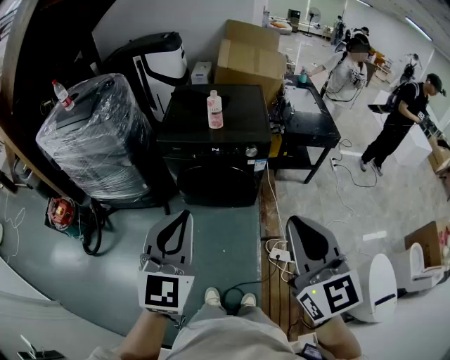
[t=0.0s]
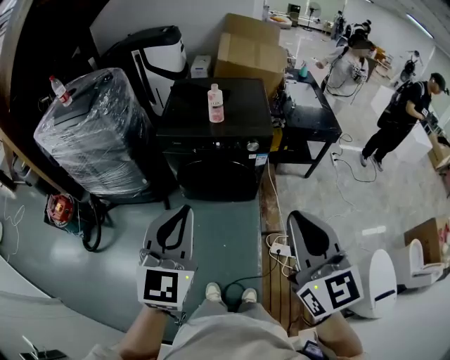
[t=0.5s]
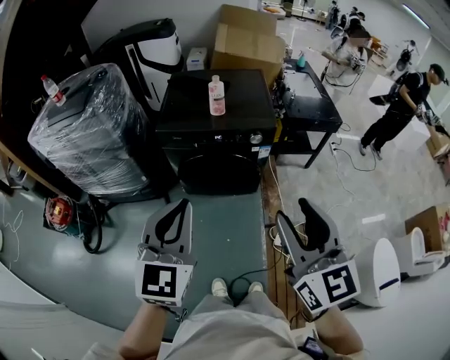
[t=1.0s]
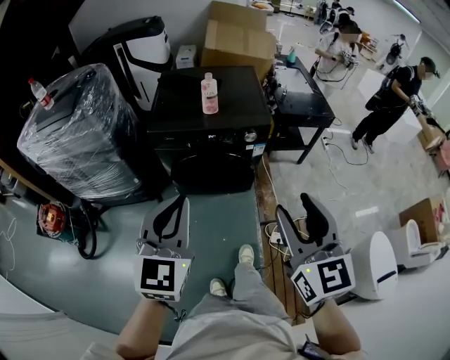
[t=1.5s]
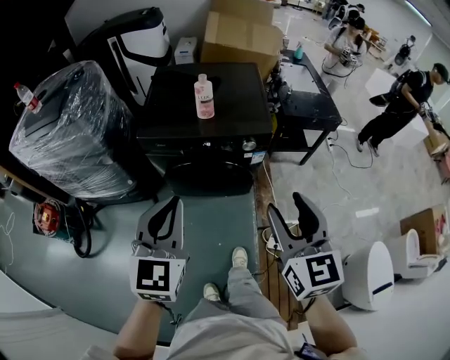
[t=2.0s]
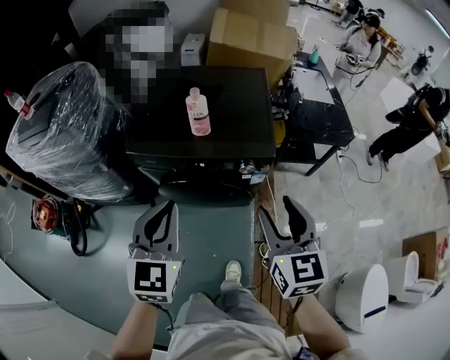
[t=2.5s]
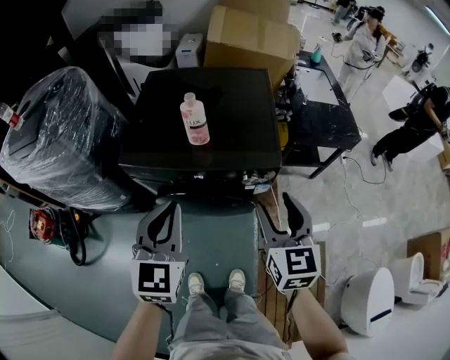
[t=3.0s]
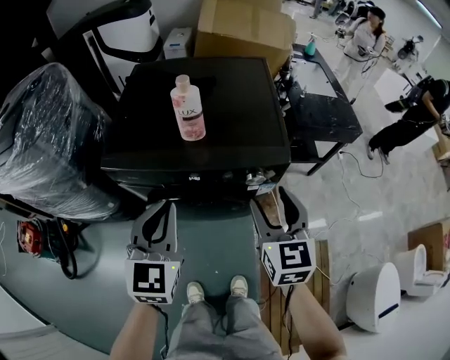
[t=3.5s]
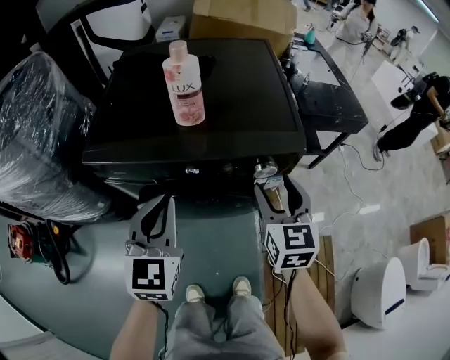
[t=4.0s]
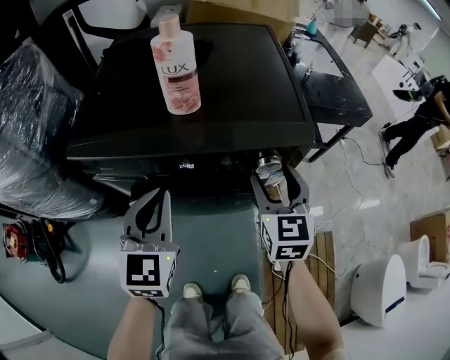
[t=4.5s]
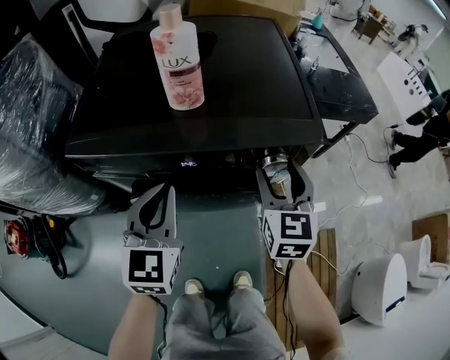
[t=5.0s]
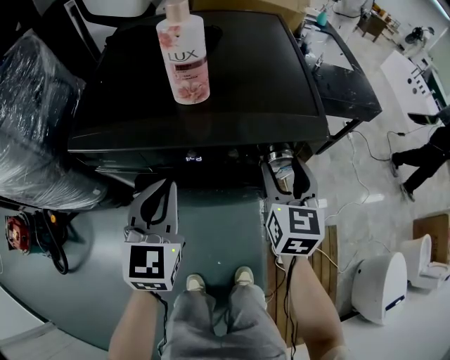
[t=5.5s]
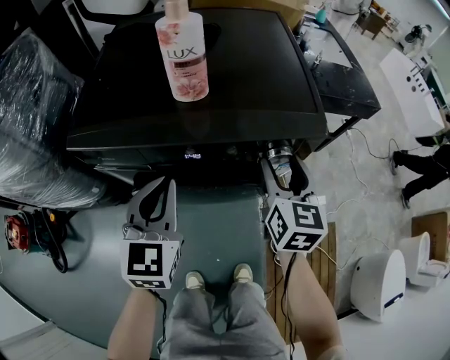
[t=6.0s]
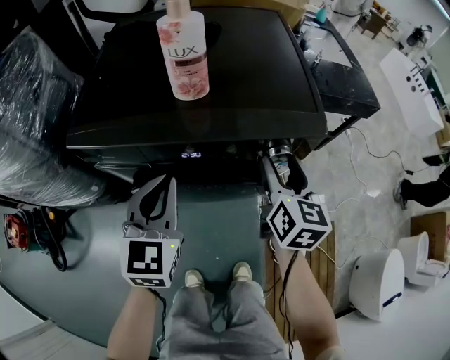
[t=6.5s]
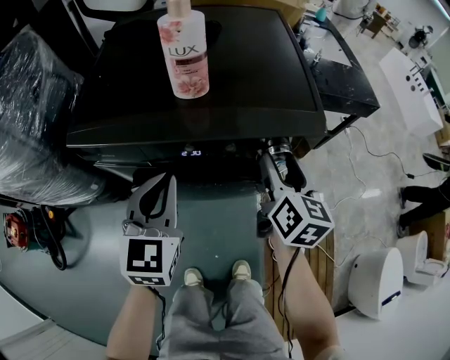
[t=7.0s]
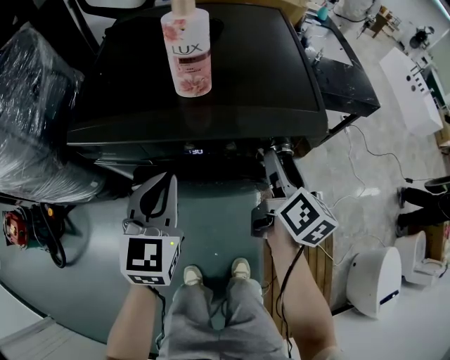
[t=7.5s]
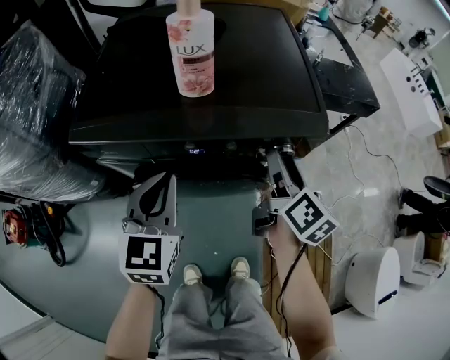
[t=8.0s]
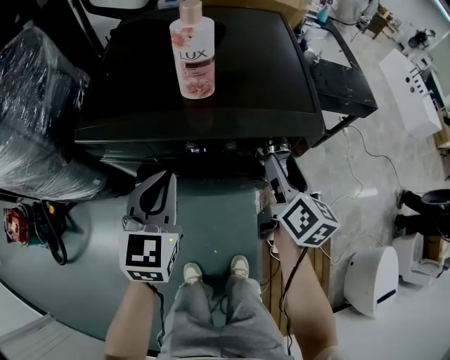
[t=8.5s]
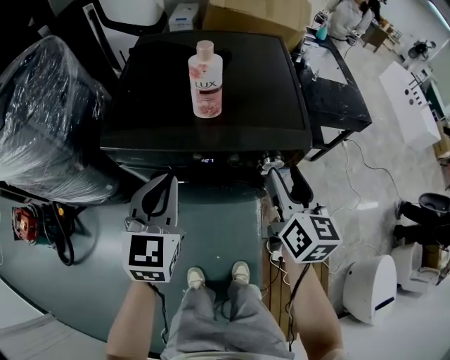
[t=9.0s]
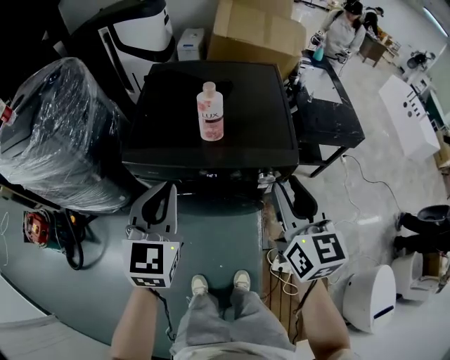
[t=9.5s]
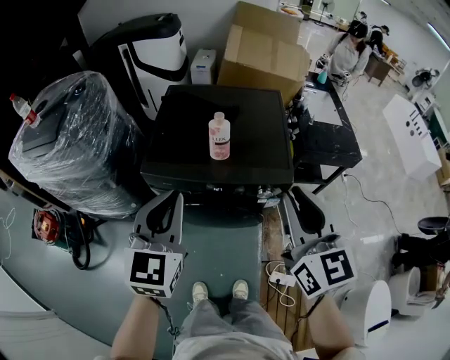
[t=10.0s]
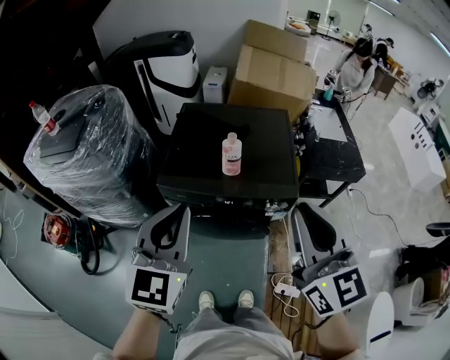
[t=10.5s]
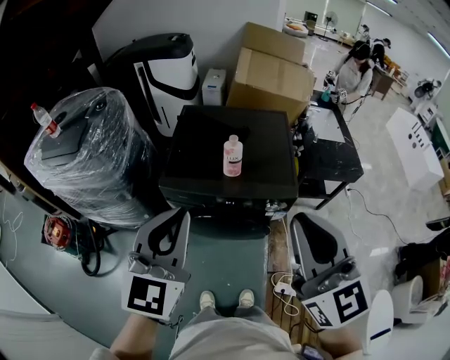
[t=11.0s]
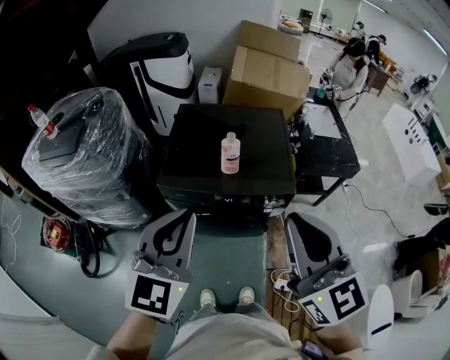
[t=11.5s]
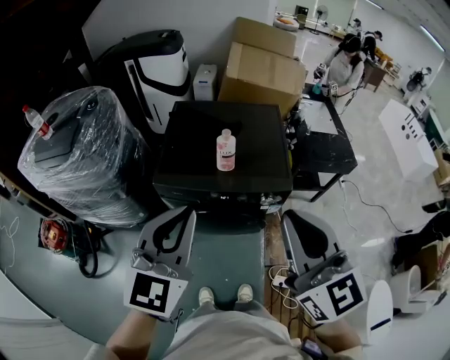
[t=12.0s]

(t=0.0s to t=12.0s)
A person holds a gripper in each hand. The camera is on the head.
t=0.0s - t=2.0s: Both grippers move forward and downward, some 20 cm. The right gripper opens.
t=2.0s - t=4.0s: Both grippers move forward and downward, approximately 40 cm.
t=4.0s - t=6.0s: The left gripper heads downward, covering roughly 5 cm. Meanwhile the right gripper moves roughly 5 cm.
t=6.0s - t=8.0s: The right gripper turns by about 40 degrees.
t=8.0s - t=10.0s: The grippers both shift upward by roughly 35 cm. The right gripper twists some 40 degrees counterclockwise, seen from behind, and closes.
t=10.0s - t=12.0s: The right gripper heads upward, backward and to the left, covering approximately 15 cm. Meanwhile the left gripper heads upward and backward, covering some 10 cm.

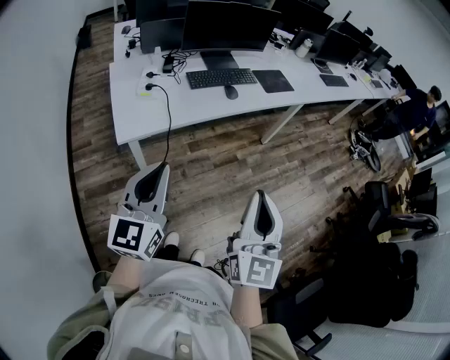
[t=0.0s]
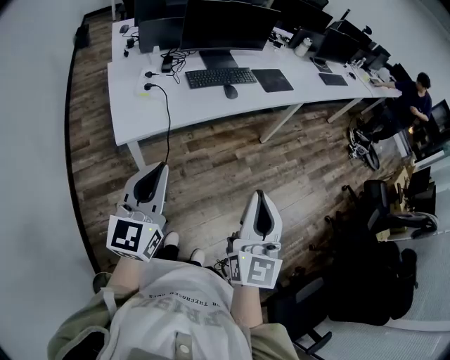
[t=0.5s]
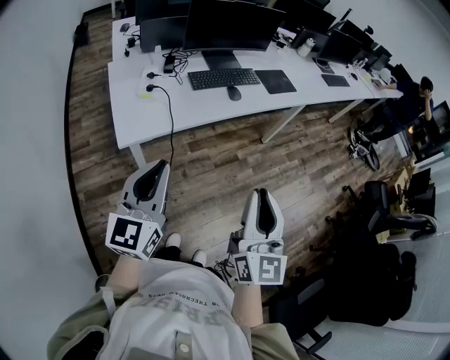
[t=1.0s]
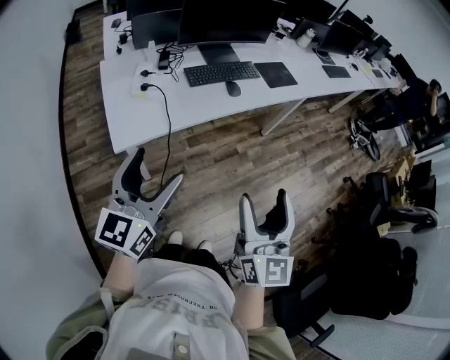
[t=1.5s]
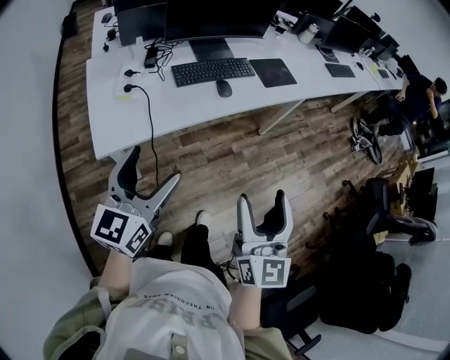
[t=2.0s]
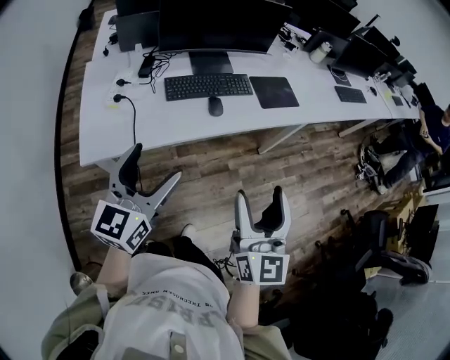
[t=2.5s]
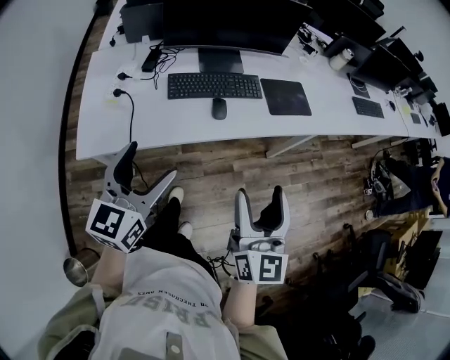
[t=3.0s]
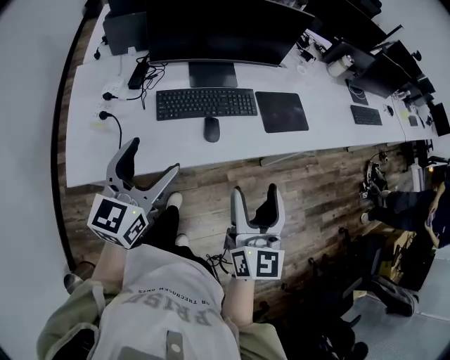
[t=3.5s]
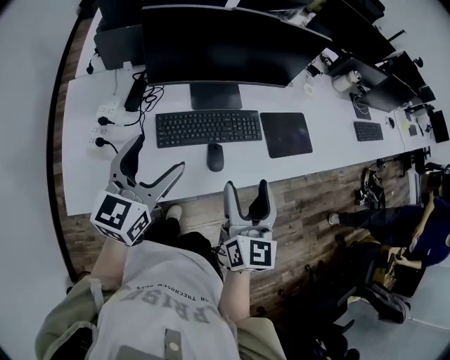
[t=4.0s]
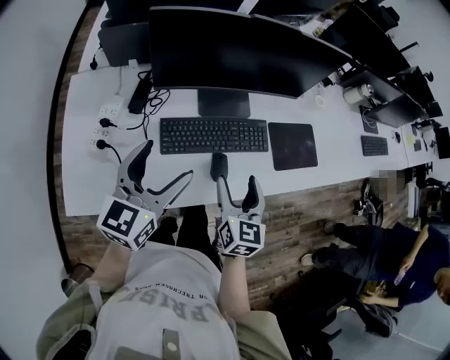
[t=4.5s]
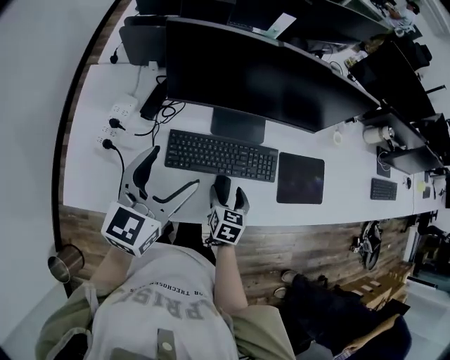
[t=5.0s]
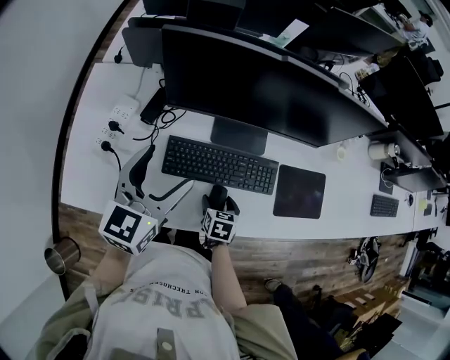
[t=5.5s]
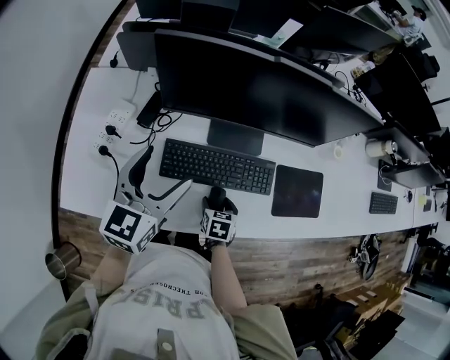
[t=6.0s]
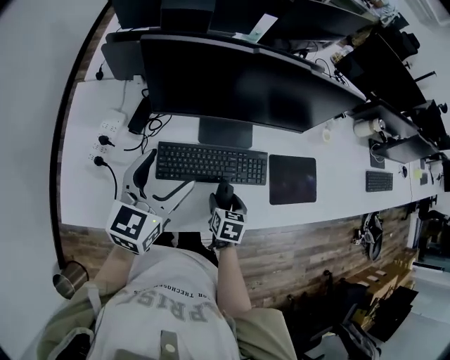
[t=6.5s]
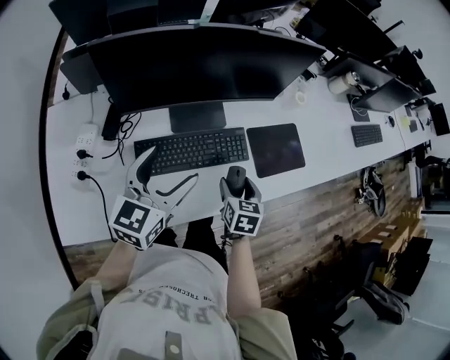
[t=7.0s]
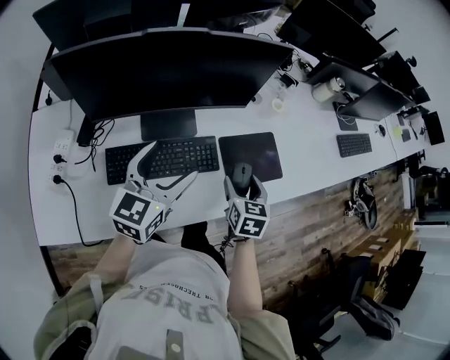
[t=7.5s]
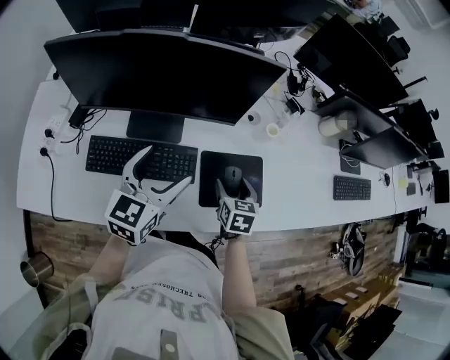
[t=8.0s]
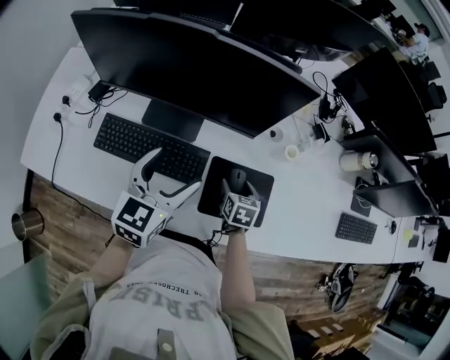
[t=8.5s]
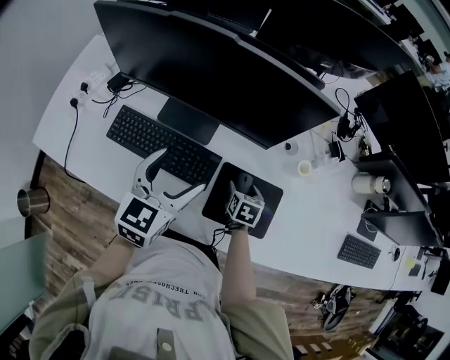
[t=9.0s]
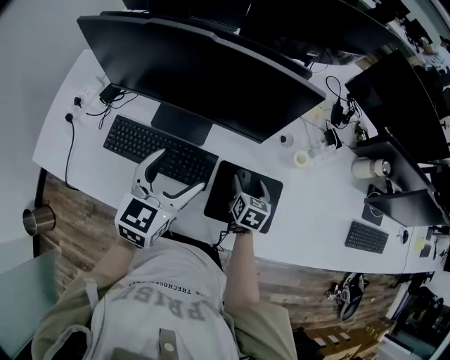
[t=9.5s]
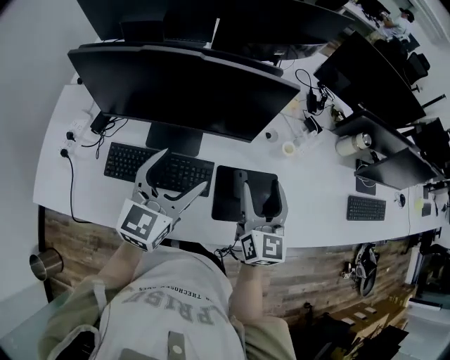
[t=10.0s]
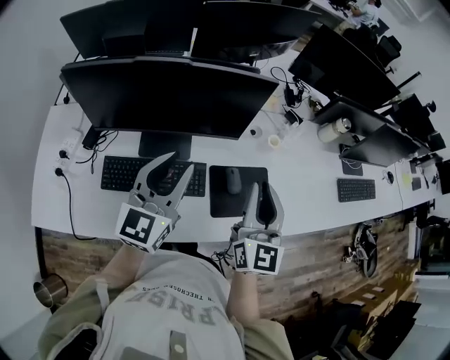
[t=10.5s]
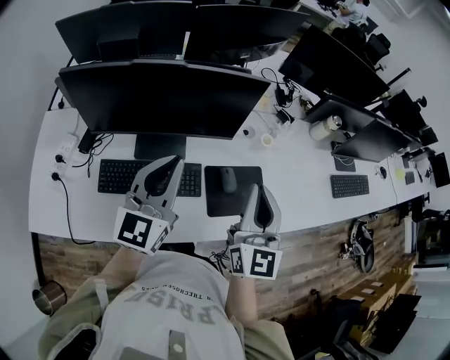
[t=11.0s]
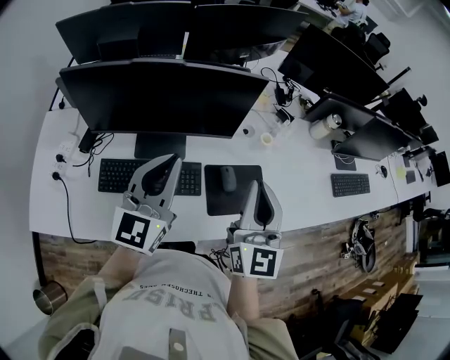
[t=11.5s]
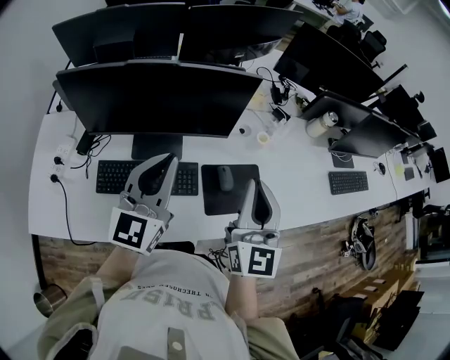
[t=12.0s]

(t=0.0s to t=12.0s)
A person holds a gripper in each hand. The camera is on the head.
t=0.0s - t=2.0s: The grippers both shift forward by approximately 15 cm. The right gripper opens. Meanwhile the left gripper opens its fingers.
t=2.0s - t=4.0s: Both grippers travel together forward, about 40 cm.
t=4.0s - t=6.0s: The left gripper travels forward by some 10 cm. Meanwhile the right gripper moves downward, roughly 30 cm, and tips its fingers downward by roughly 50 degrees.
t=6.0s - t=8.0s: The right gripper is displaced to the right and forward by roughly 30 cm. Meanwhile the left gripper heads to the right, covering some 25 cm.
t=8.0s - t=10.0s: The right gripper heads upward, covering roughly 15 cm, and tips its fingers upward by about 40 degrees.
t=10.0s - t=12.0s: The right gripper travels upward and backward by about 15 cm, and closes. The left gripper travels upward by about 10 cm, and closes.

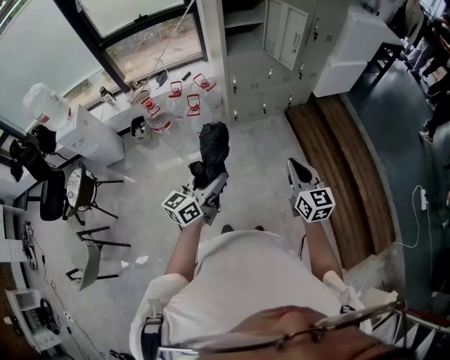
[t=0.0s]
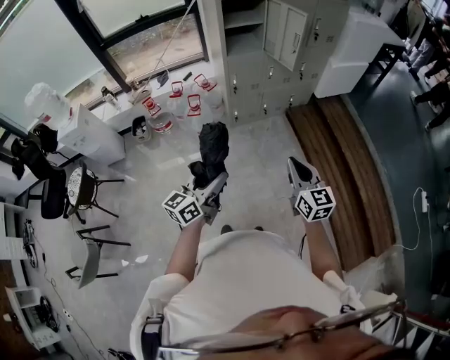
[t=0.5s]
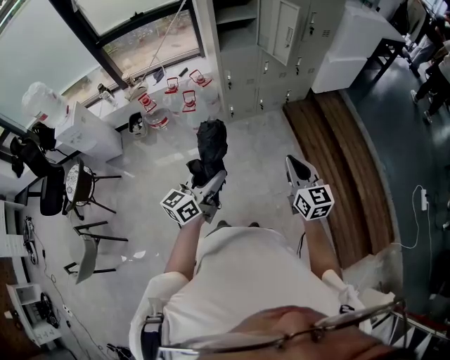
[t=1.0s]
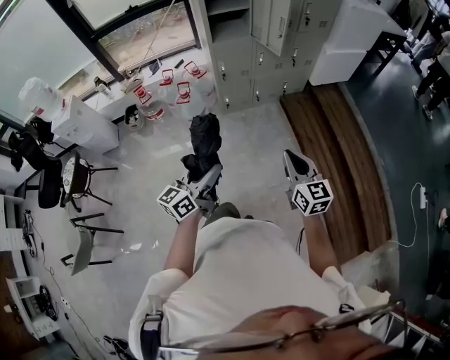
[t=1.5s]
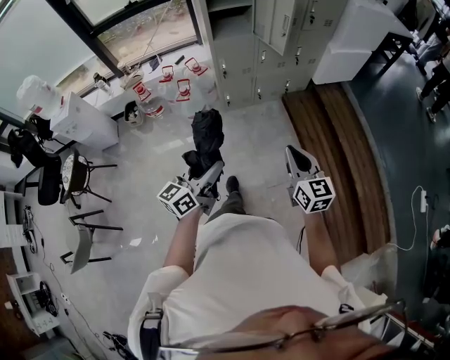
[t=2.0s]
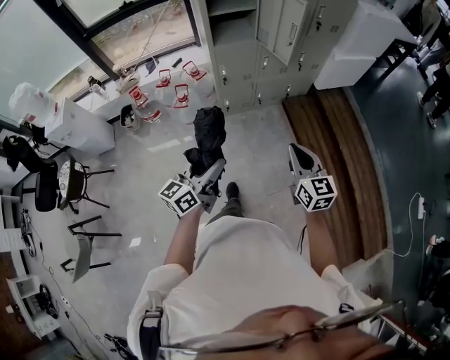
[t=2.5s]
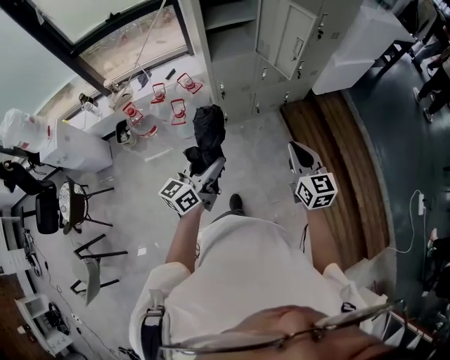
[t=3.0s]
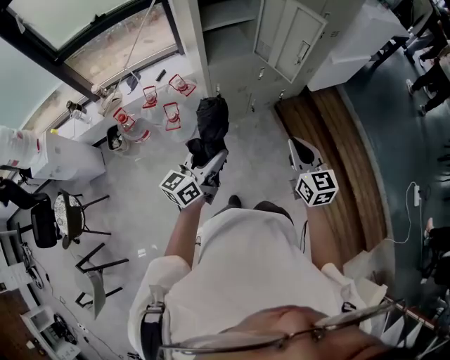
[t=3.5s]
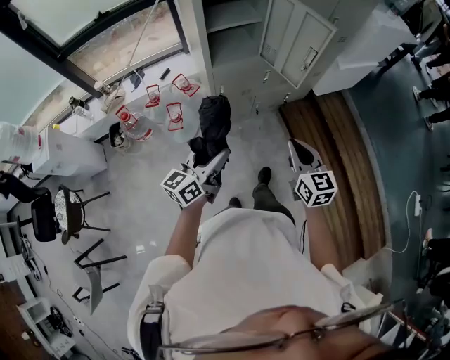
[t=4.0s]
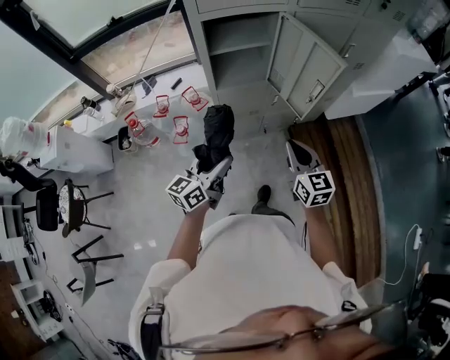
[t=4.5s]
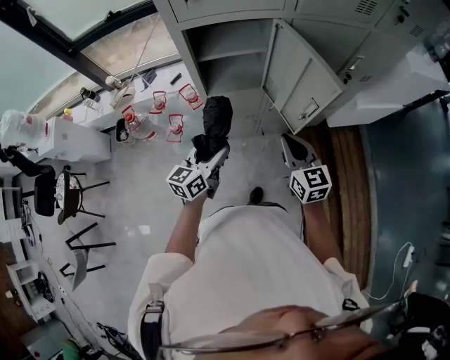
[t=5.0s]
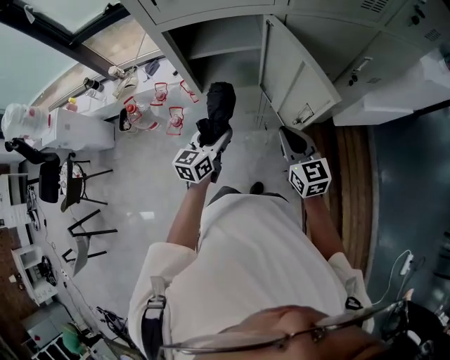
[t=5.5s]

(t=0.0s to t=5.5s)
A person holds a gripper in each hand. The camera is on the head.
t=0.0s - t=2.0s: The two grippers go some 10 cm to the right.
t=2.0s - t=3.5s: Both grippers move forward, some 25 cm.
t=3.5s - t=5.5s: Both grippers travel together forward, approximately 30 cm. The left gripper swivels roughly 30 degrees, while the right gripper turns by about 20 degrees.
